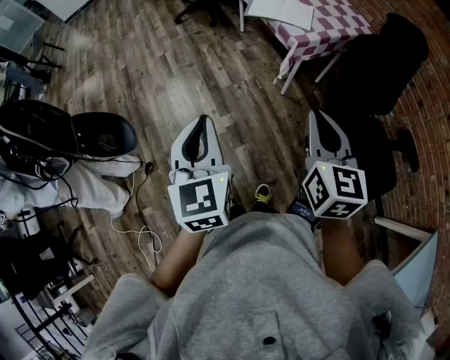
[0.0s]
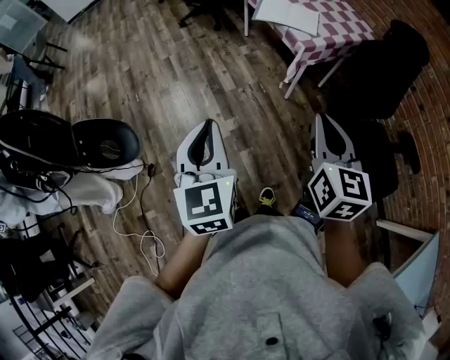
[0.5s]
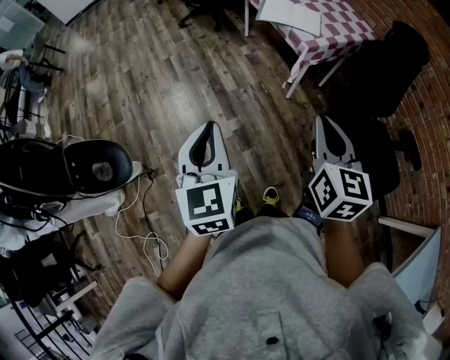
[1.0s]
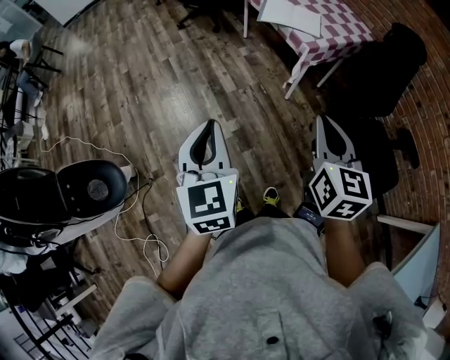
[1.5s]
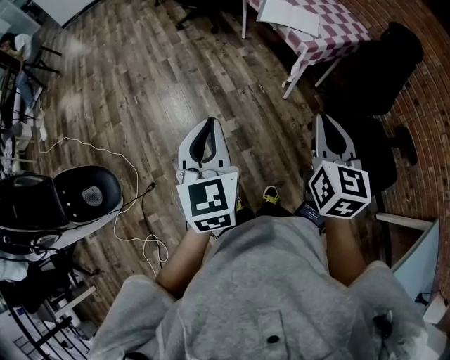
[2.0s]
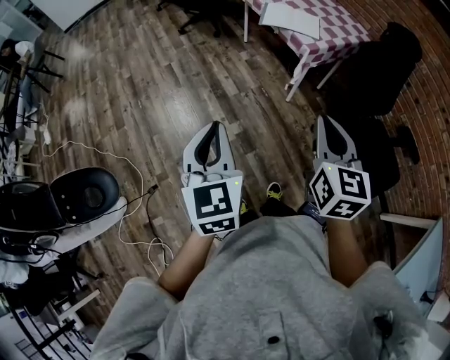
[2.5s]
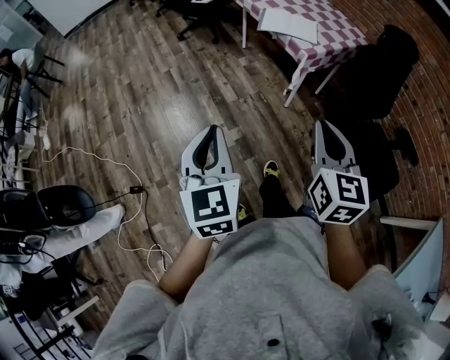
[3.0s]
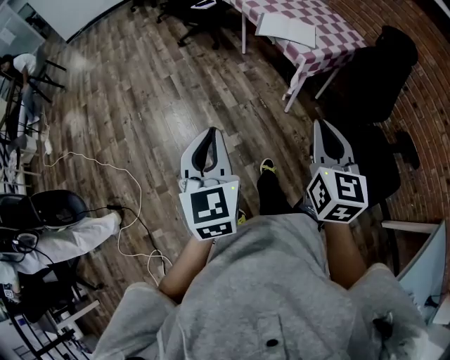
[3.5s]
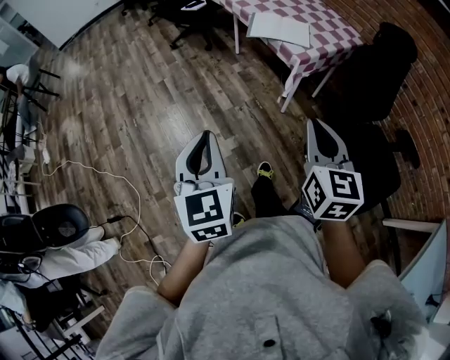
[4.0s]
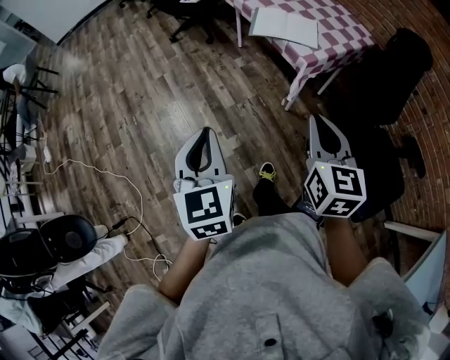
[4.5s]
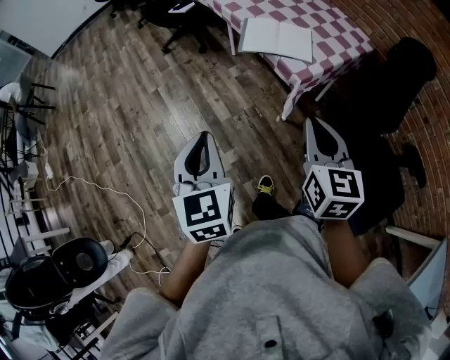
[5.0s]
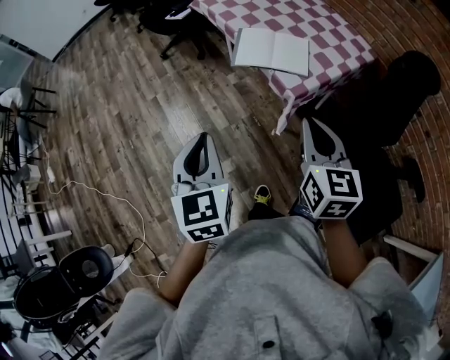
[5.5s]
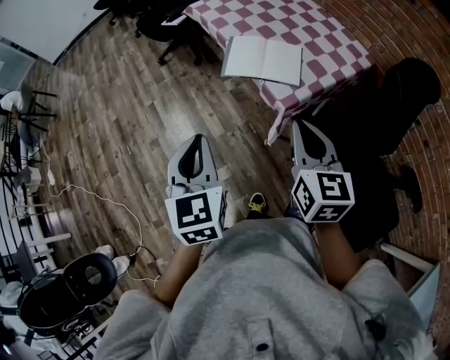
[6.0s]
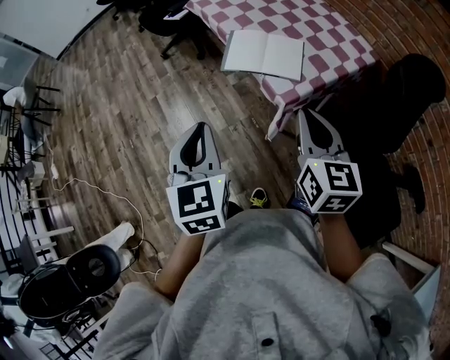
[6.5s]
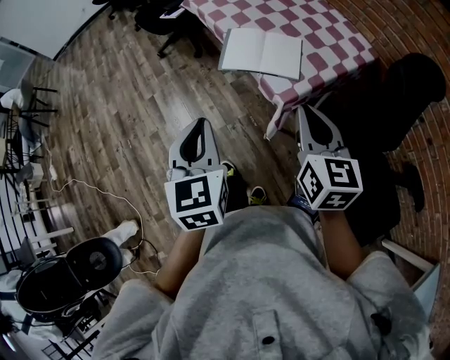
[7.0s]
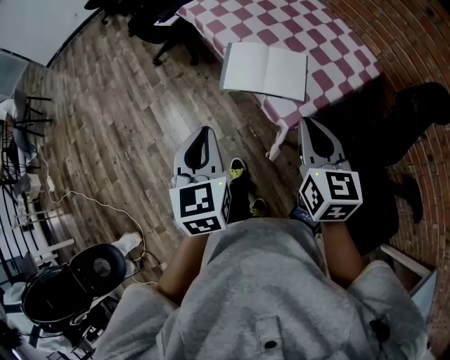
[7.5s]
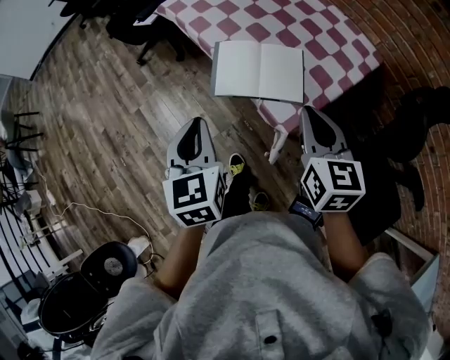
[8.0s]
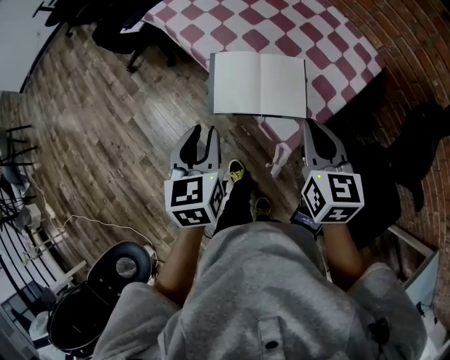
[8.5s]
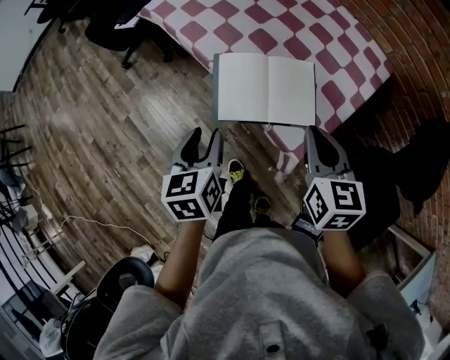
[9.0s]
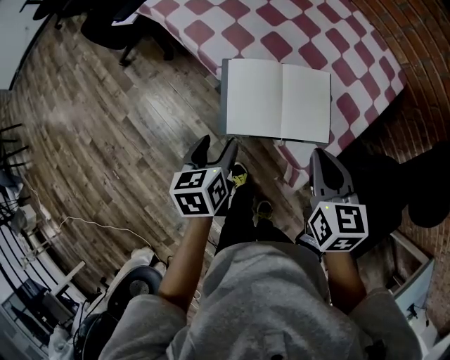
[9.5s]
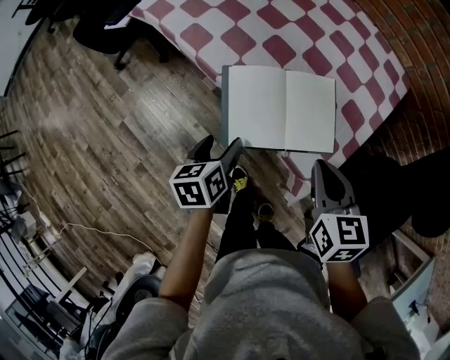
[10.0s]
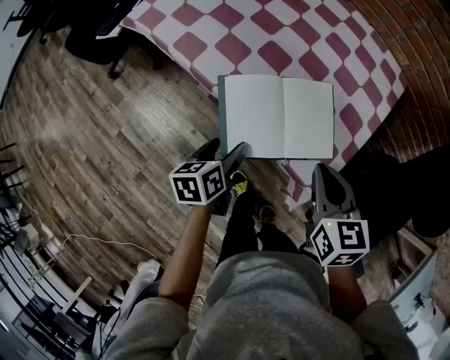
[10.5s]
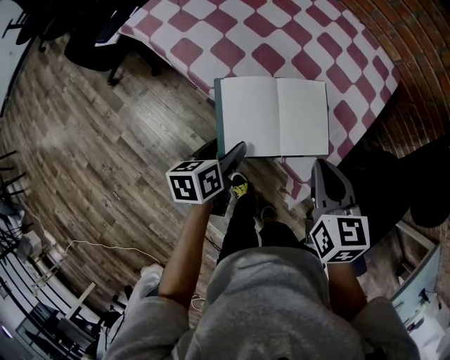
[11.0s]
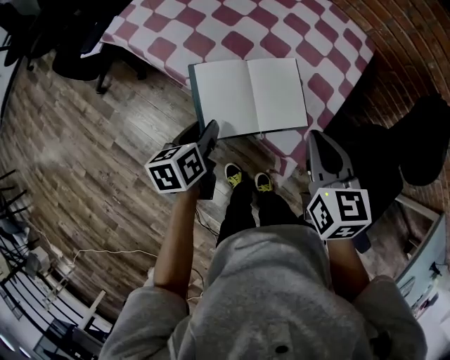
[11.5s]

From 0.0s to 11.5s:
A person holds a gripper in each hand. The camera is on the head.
From 0.0s to 2.0s: Both grippers move to the left, roughly 10 cm.
From 2.0s to 4.0s: The grippers move only a little.
From 4.0s to 6.0s: Both grippers travel together forward and to the right, roughly 30 cm.
From 6.0s to 7.5s: Both grippers move forward, some 10 cm.
From 7.5s to 9.5s: The left gripper moves downward and forward, approximately 30 cm, rotates approximately 40 degrees, and opens, while the right gripper is displaced forward and downward by roughly 20 cm, and changes its angle by roughly 20 degrees.
From 9.5s to 11.5s: The right gripper ends up roughly 5 cm from where it was; the left gripper is displaced forward by about 5 cm.

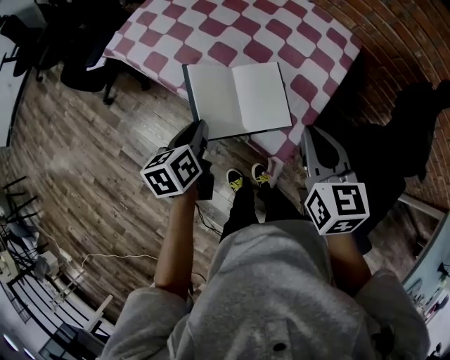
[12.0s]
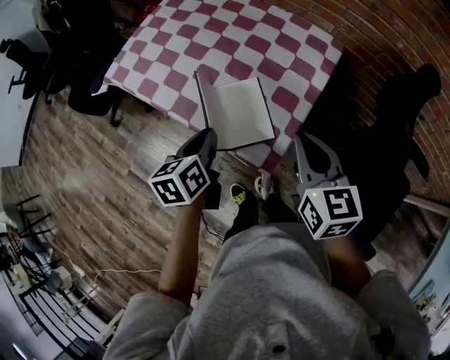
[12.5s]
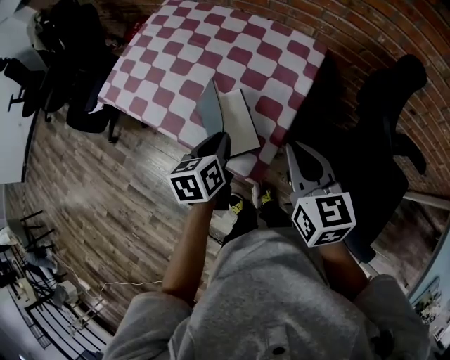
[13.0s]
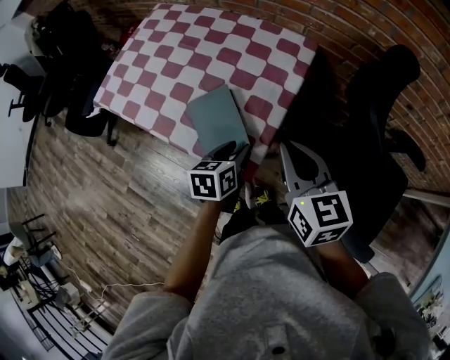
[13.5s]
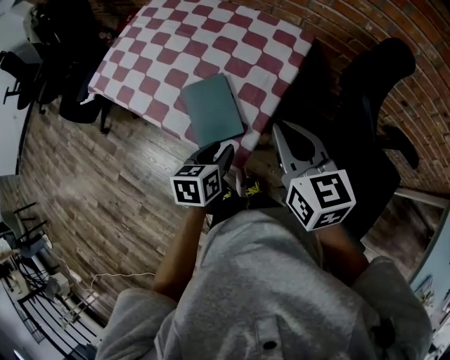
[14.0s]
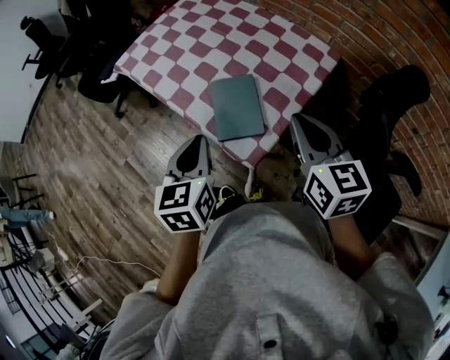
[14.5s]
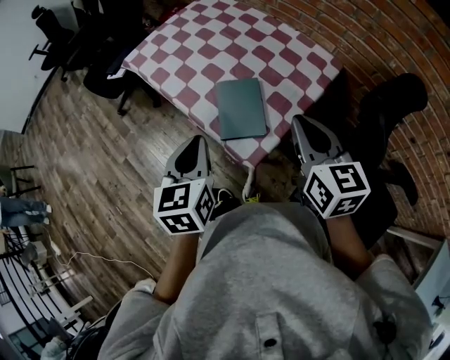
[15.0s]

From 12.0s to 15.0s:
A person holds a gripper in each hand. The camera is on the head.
From 12.0s to 13.5s: The right gripper travels to the right by roughly 10 cm; the left gripper goes some 25 cm to the right, and rotates roughly 30 degrees.
From 13.5s to 15.0s: The right gripper ends up about 5 cm from where it was. The left gripper is displaced upward by about 15 cm, swivels approximately 40 degrees, and closes.

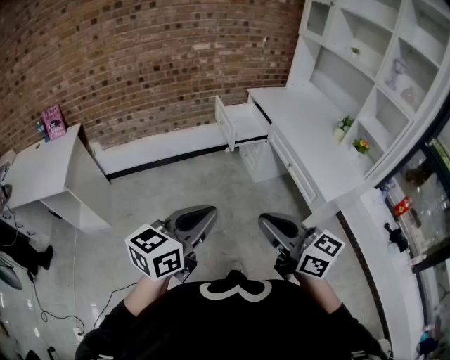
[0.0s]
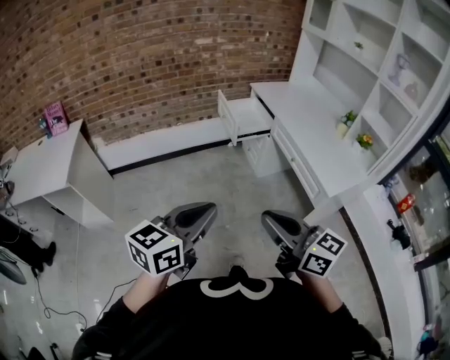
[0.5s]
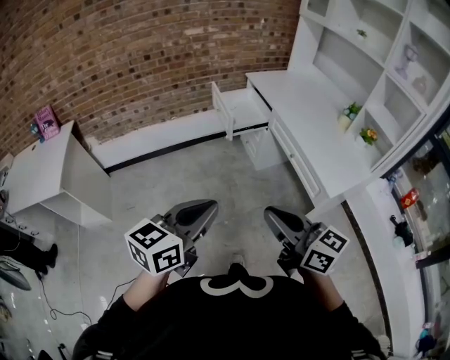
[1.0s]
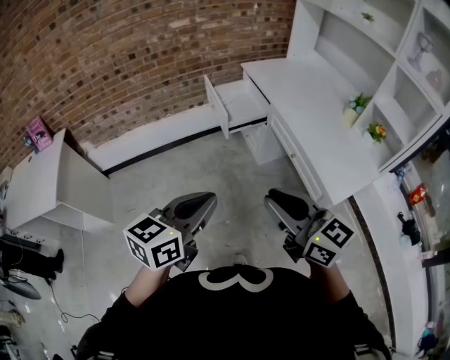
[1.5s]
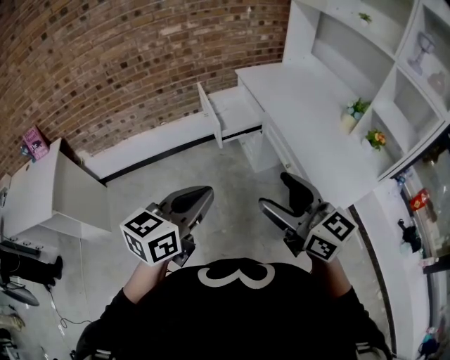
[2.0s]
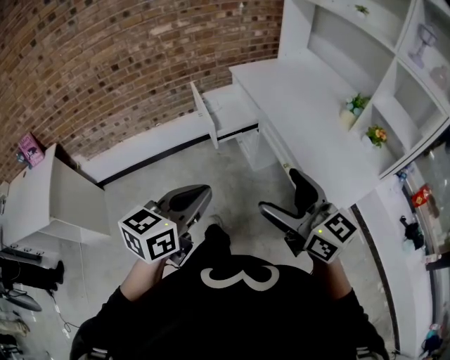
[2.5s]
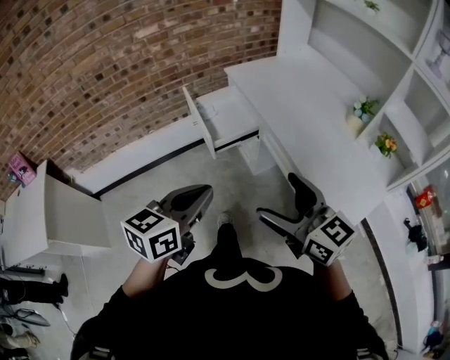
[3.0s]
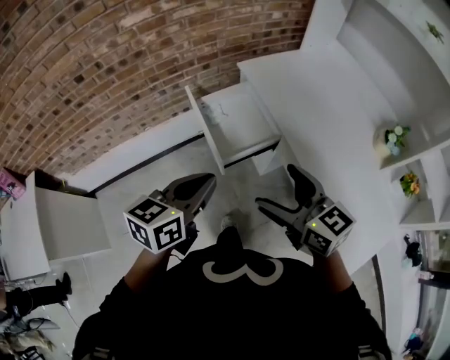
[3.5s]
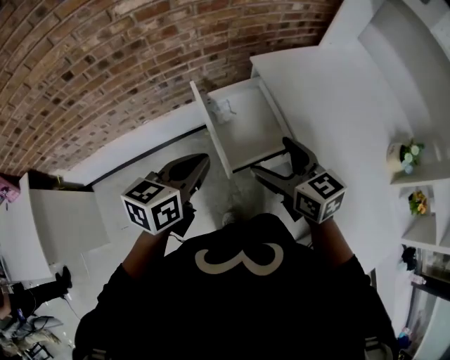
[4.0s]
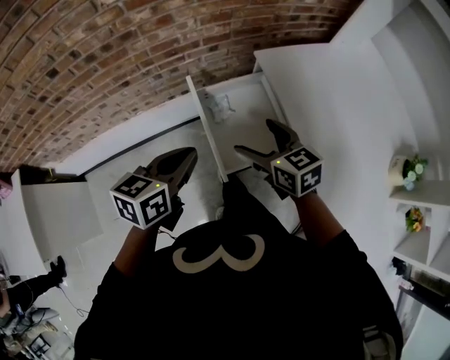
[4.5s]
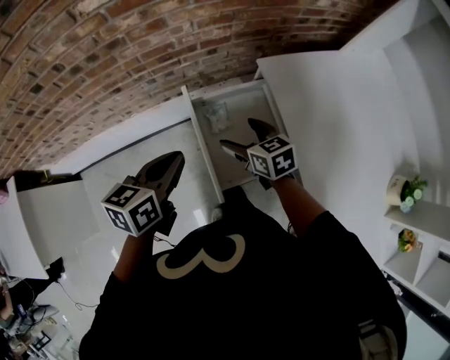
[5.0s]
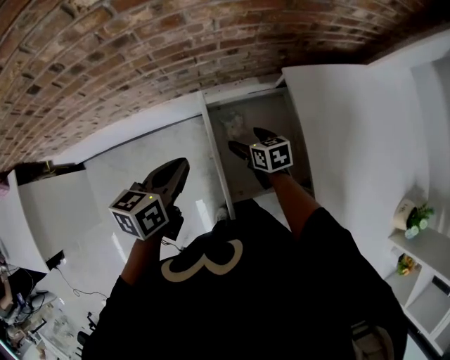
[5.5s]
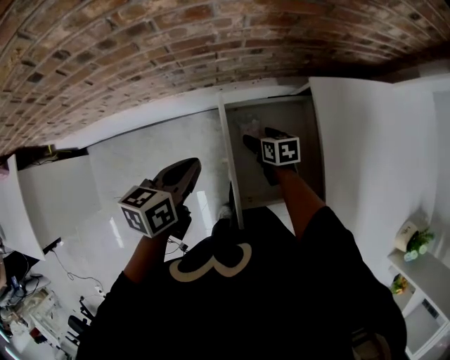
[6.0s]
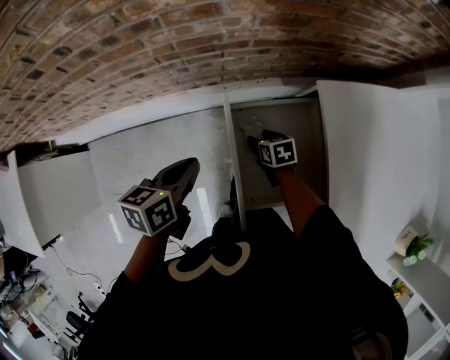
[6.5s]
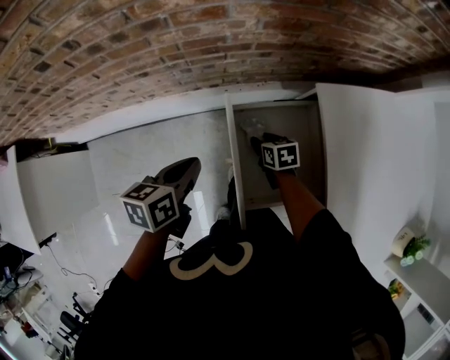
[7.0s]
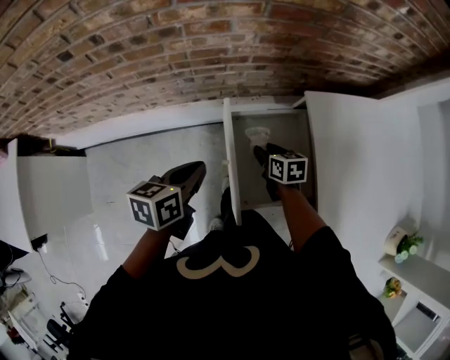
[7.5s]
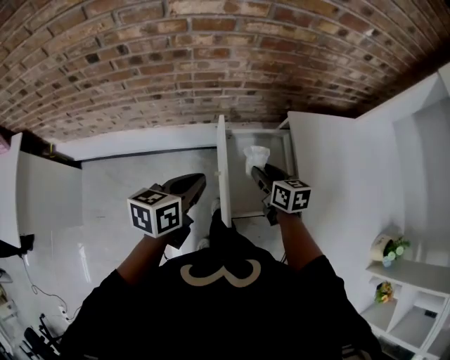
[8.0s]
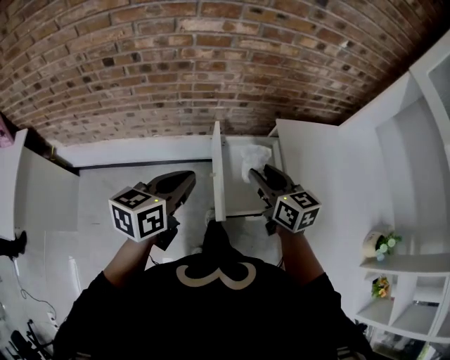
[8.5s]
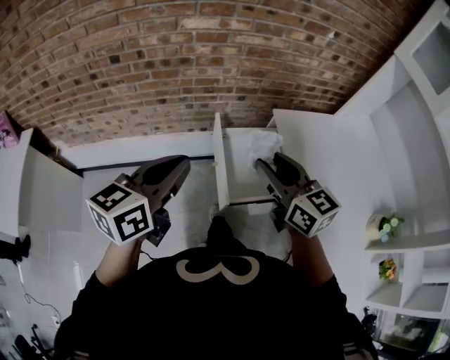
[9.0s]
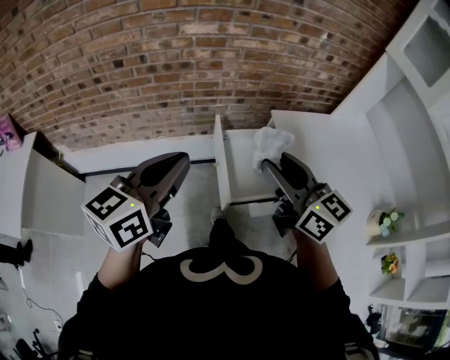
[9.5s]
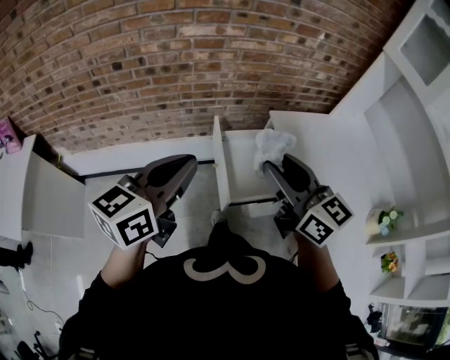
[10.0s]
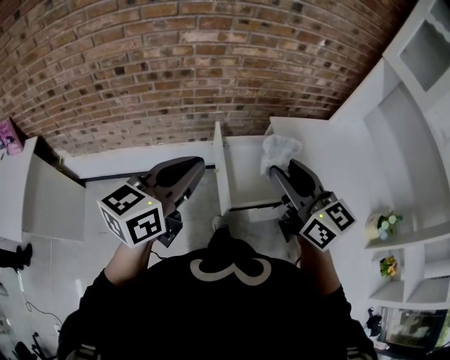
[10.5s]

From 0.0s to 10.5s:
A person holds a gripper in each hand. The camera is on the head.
From 0.0s to 2.0s: Both grippers travel together forward and to the right, approximately 25 cm. The right gripper opens up.
From 2.0s to 4.0s: Both grippers are carried forward, roughly 50 cm. The right gripper changes its angle by roughly 20 degrees.
From 4.0s to 6.5s: The right gripper moves downward and forward, approximately 40 cm, tips its fingers downward by about 40 degrees, and closes its fingers, while the left gripper travels forward, downward and to the left by some 25 cm, and swivels approximately 30 degrees.
From 6.5s to 8.5s: The left gripper shifts roughly 20 cm upward and backward, and rotates some 20 degrees; the right gripper goes about 35 cm upward, and angles its fingers upward, by about 40 degrees.
From 8.5s to 10.5s: Both grippers travel together upward and backward, about 20 cm. The right gripper turns by approximately 20 degrees.

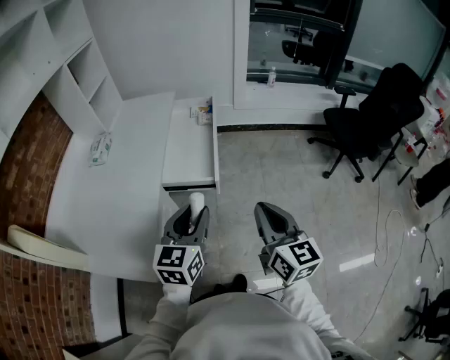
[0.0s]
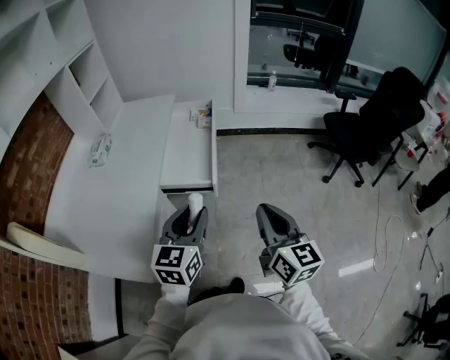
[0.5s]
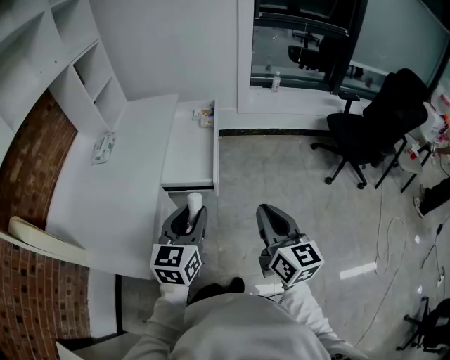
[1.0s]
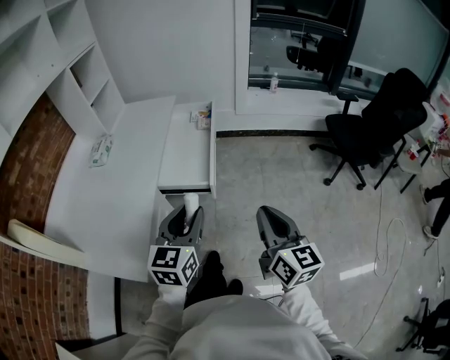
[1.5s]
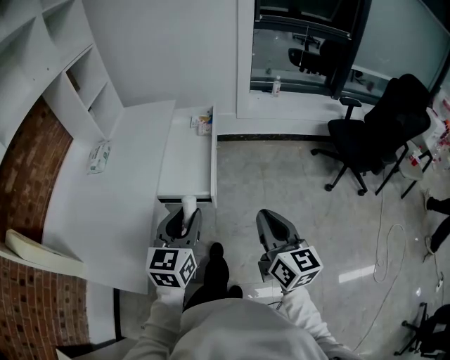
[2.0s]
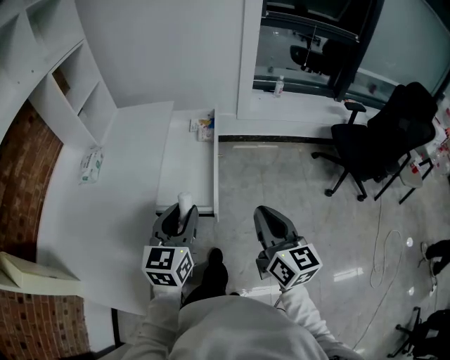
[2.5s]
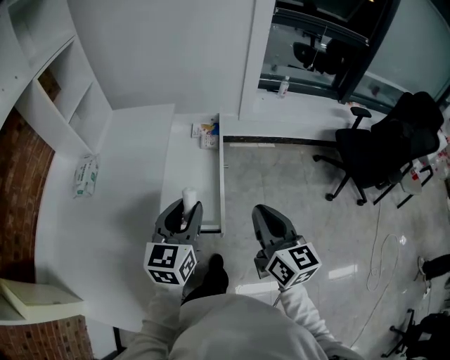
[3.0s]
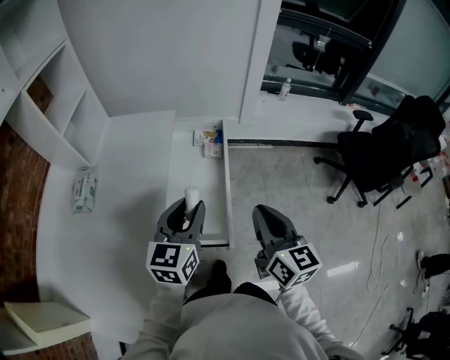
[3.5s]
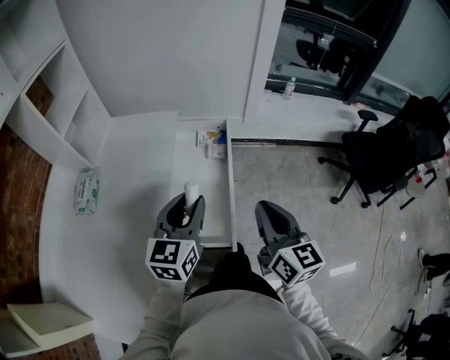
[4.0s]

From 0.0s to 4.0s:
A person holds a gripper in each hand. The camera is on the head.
From 0.0s to 2.0s: The right gripper shifts by roughly 5 cm.
From 2.0s to 4.0s: The grippers both shift forward by some 30 cm.
